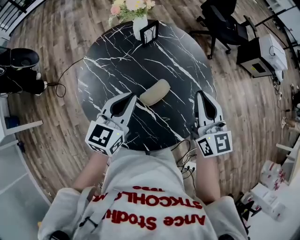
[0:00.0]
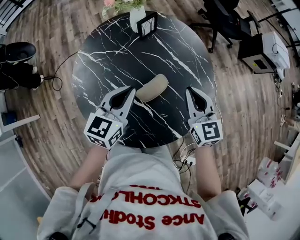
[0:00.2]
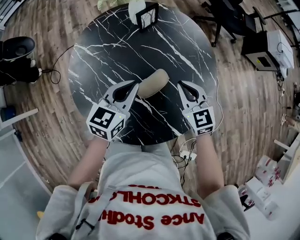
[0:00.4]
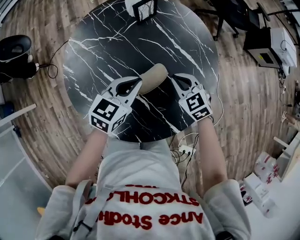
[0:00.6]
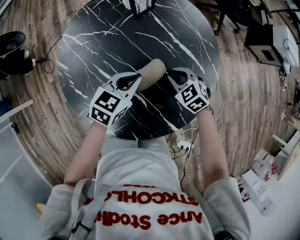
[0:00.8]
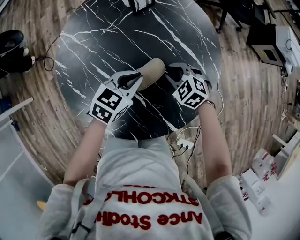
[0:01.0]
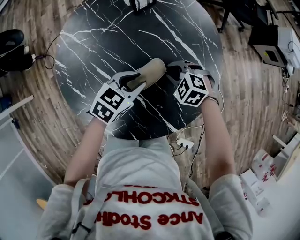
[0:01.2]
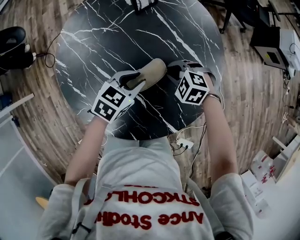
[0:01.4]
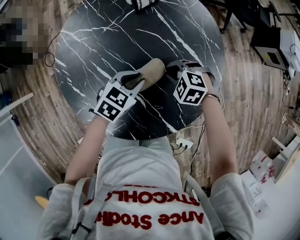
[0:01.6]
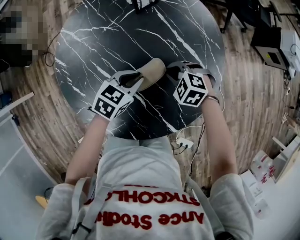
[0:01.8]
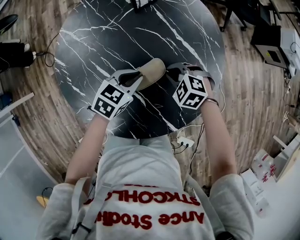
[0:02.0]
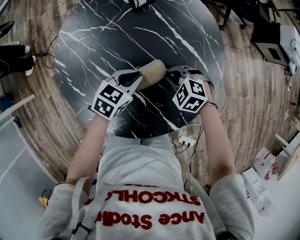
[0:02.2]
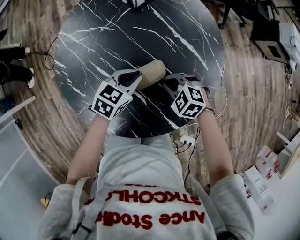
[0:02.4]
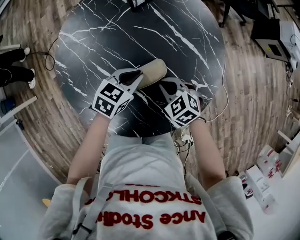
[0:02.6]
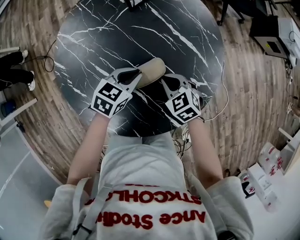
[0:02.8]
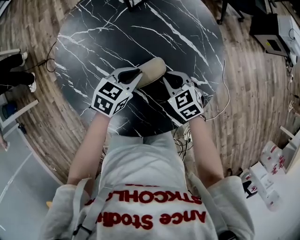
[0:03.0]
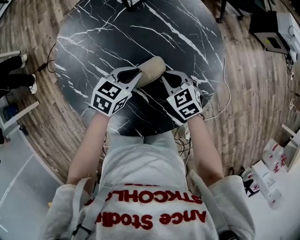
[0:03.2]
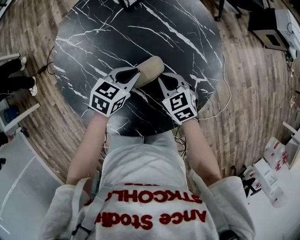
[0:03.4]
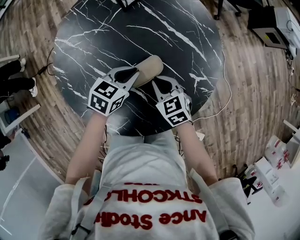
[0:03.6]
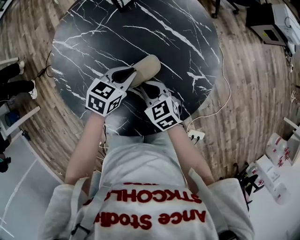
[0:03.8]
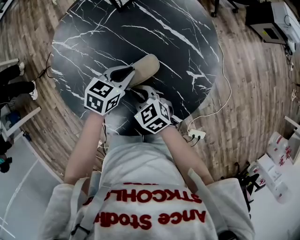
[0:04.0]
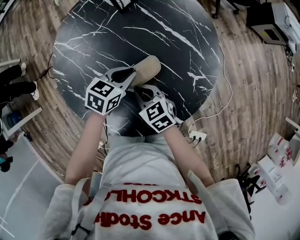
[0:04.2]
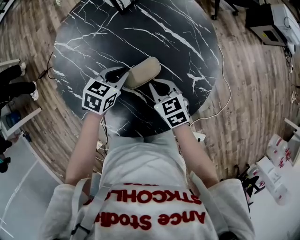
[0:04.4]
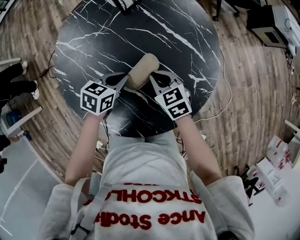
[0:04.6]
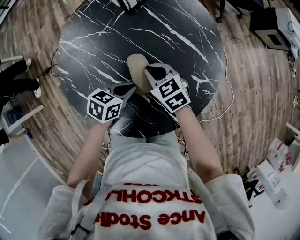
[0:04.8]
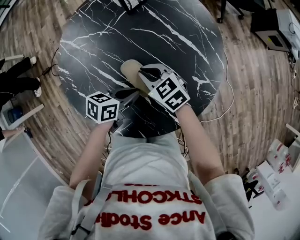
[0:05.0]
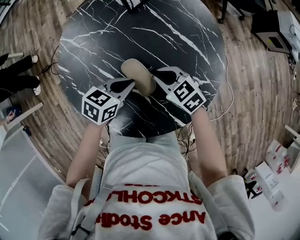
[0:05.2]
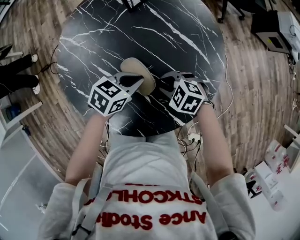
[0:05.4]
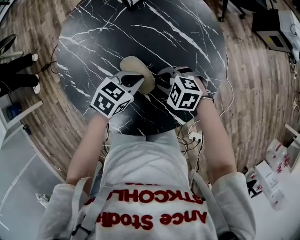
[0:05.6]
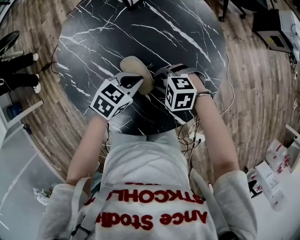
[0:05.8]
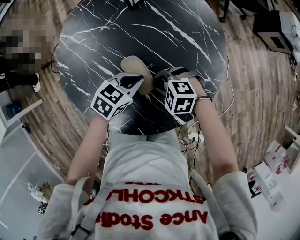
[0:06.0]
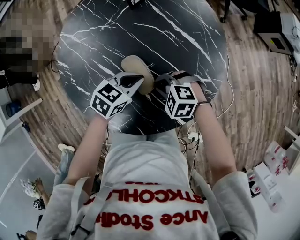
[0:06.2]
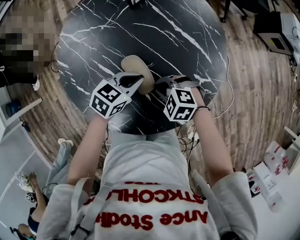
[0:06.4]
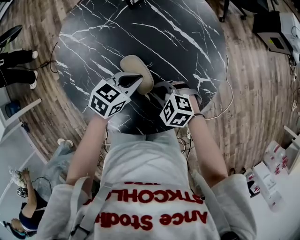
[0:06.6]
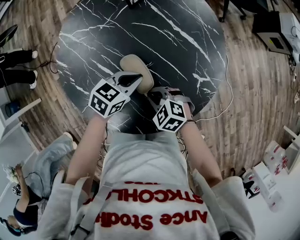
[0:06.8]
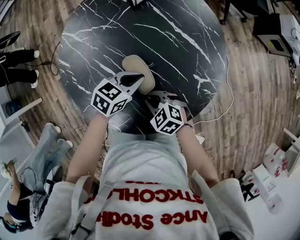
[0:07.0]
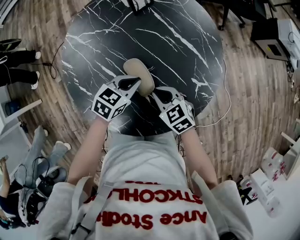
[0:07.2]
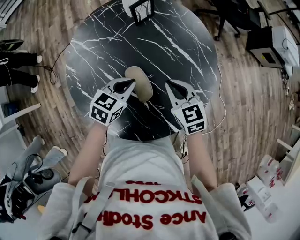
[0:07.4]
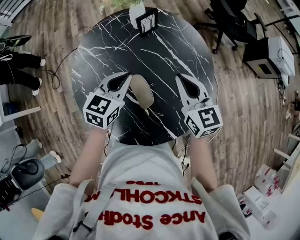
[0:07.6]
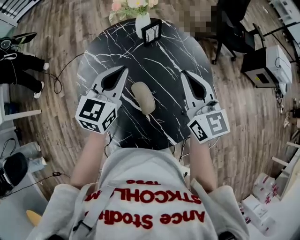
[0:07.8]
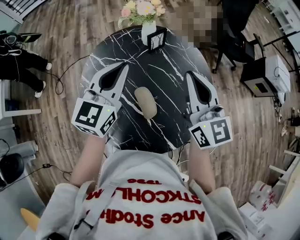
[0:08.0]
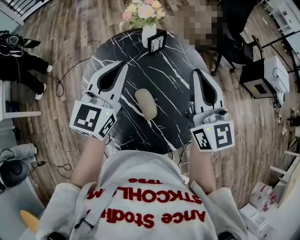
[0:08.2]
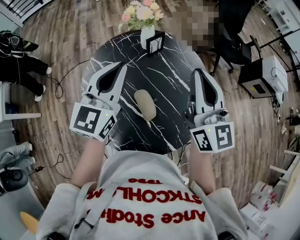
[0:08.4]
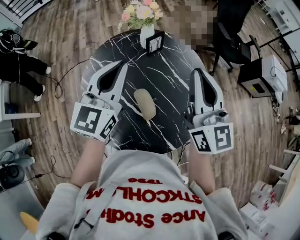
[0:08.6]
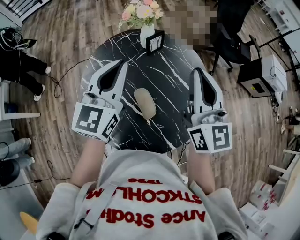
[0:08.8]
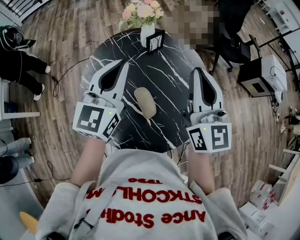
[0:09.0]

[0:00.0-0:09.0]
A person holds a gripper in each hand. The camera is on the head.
0:00.0 to 0:01.6: The two grippers go roughly 25 cm downward. The left gripper tips its fingers downward by roughly 30 degrees, while the right gripper tips its fingers downward by some 60 degrees.
0:01.6 to 0:03.0: The right gripper turns by about 40 degrees.
0:03.0 to 0:04.4: The right gripper goes to the left and returns, some 10 cm each way.
0:04.4 to 0:06.0: The left gripper ends up some 5 cm from where it was, while the right gripper rotates around the line of its fingers by roughly 50 degrees, counterclockwise from behind.
0:06.0 to 0:07.6: The right gripper travels upward by approximately 25 cm, and angles its fingers upward, by some 40 degrees. The left gripper travels upward by approximately 15 cm, and changes its angle by approximately 30 degrees.
0:07.6 to 0:09.0: Both grippers travel together upward, about 20 cm. The left gripper changes its angle by approximately 30 degrees; the right gripper swivels about 30 degrees.

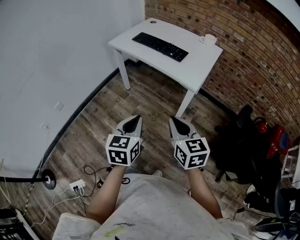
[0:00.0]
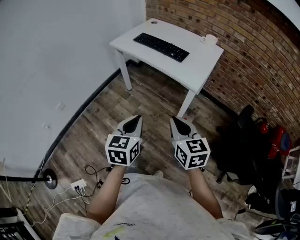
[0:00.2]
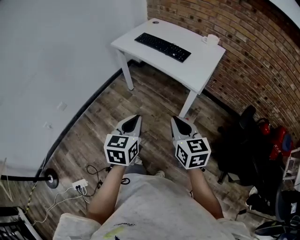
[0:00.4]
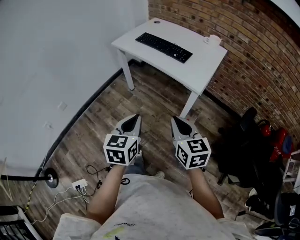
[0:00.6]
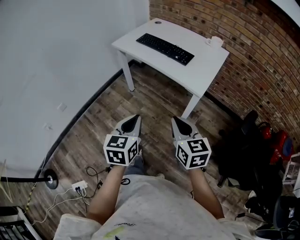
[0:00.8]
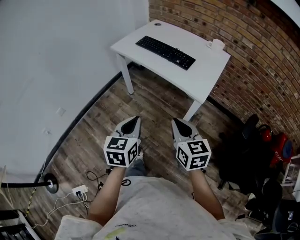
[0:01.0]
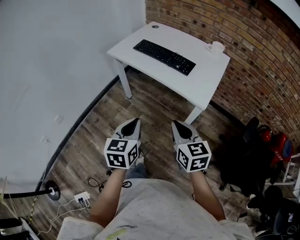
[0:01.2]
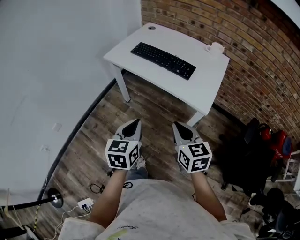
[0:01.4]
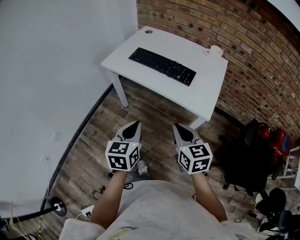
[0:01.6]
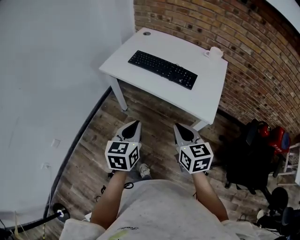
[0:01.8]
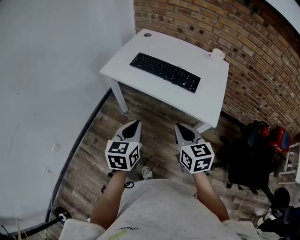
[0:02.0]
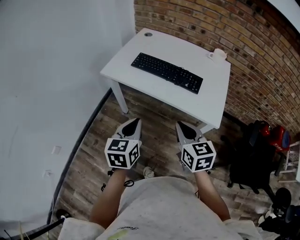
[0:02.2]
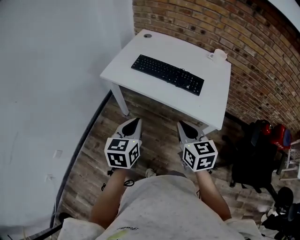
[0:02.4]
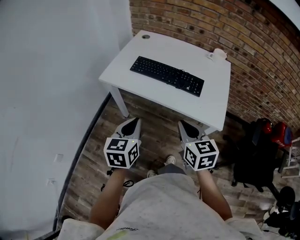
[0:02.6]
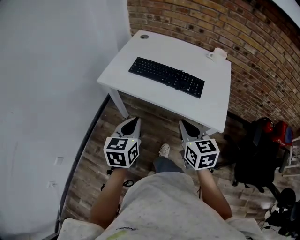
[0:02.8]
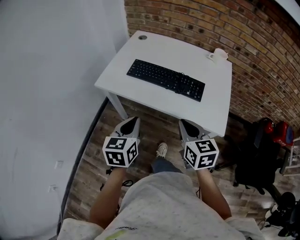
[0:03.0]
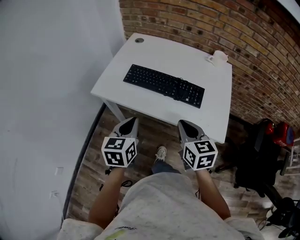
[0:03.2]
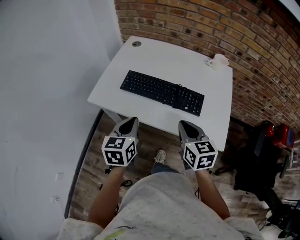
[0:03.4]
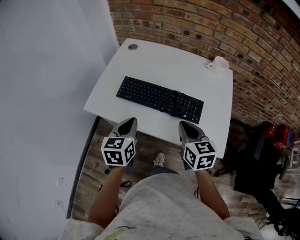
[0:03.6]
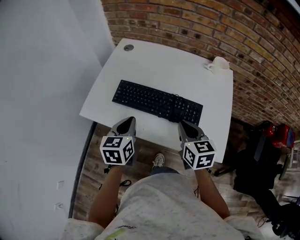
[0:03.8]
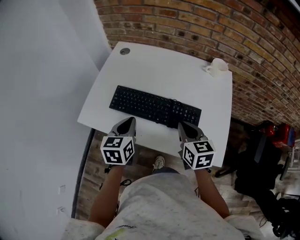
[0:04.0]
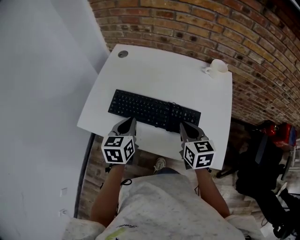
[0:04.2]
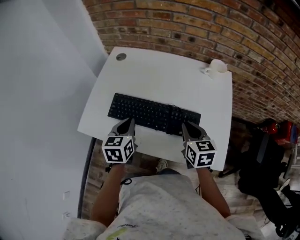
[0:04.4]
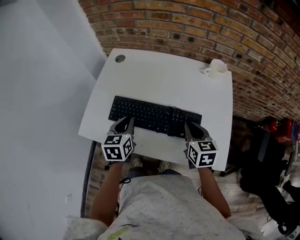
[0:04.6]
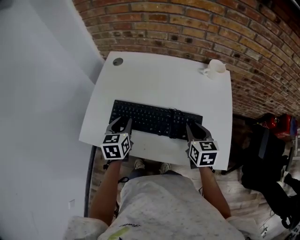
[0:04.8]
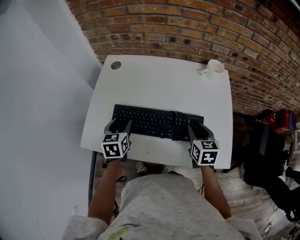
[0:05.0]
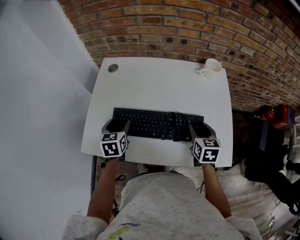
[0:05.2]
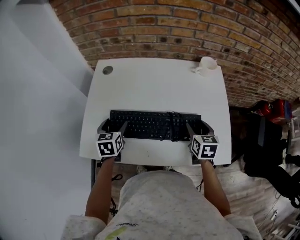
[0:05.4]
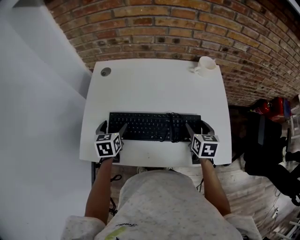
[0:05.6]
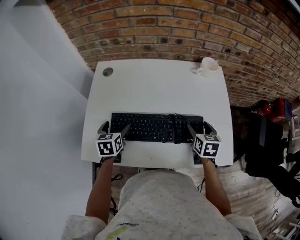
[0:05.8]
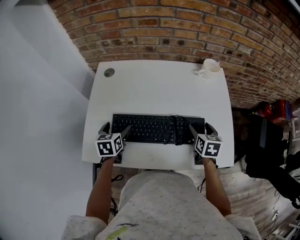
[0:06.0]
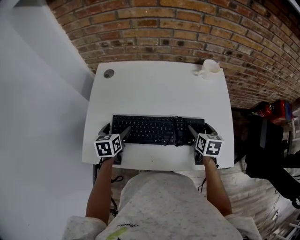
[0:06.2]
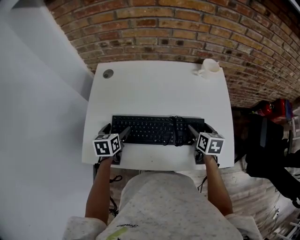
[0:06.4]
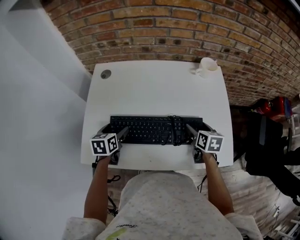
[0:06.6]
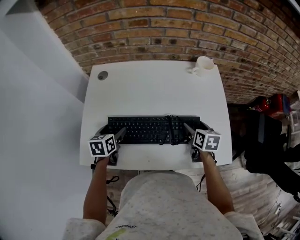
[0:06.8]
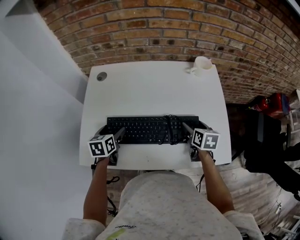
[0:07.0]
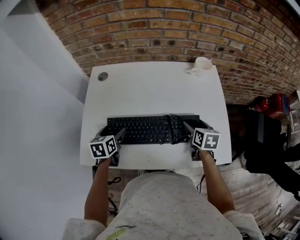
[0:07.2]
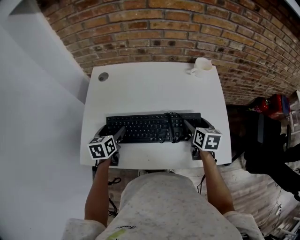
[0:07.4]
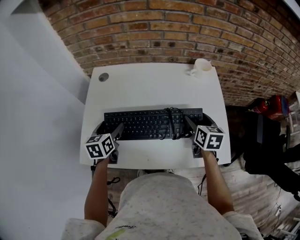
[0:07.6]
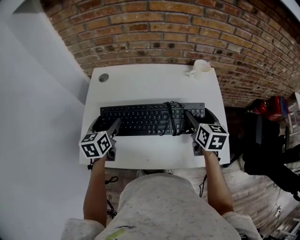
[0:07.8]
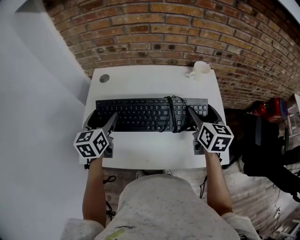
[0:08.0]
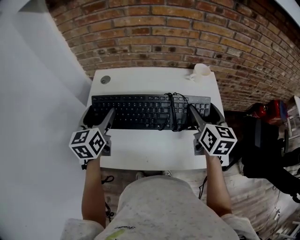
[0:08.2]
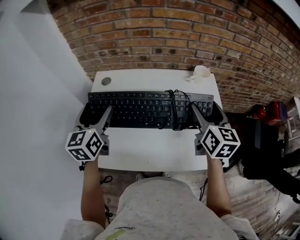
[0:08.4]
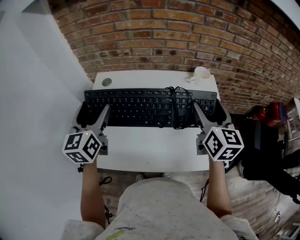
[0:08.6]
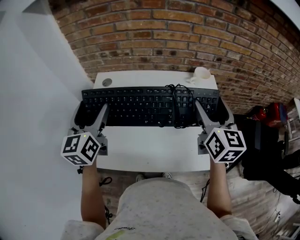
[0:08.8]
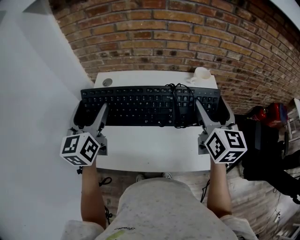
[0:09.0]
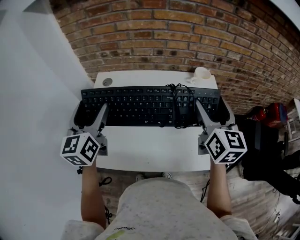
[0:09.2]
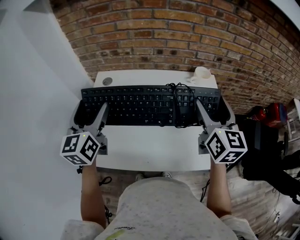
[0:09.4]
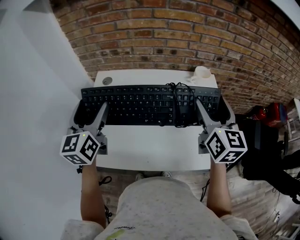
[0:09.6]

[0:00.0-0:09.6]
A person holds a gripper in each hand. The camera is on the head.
0:00.0 to 0:01.6: The two grippers go approximately 25 cm forward.
0:01.6 to 0:03.2: The grippers both shift forward by some 25 cm.
0:03.2 to 0:04.8: The left gripper heads forward, covering approximately 30 cm; the right gripper moves forward and to the right, approximately 25 cm.
0:04.8 to 0:06.4: The right gripper is displaced downward by about 5 cm, rotates some 20 degrees, and opens its fingers, while the left gripper goes roughly 10 cm forward, to the left and downward, and opens.
0:06.4 to 0:08.0: Both grippers move upward, some 15 cm. The right gripper changes its angle by approximately 20 degrees, while the left gripper turns by approximately 20 degrees.
0:08.0 to 0:09.6: Both grippers move upward, roughly 15 cm.

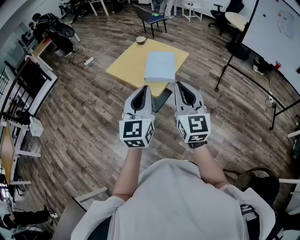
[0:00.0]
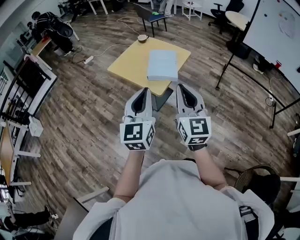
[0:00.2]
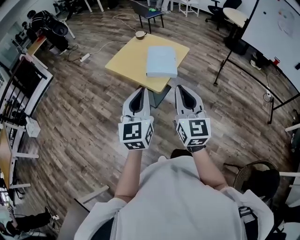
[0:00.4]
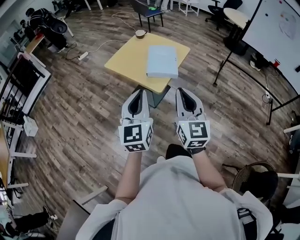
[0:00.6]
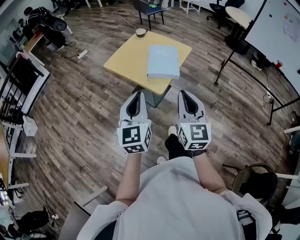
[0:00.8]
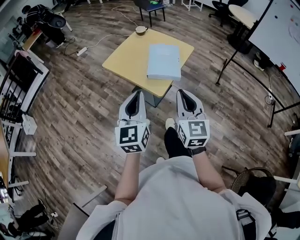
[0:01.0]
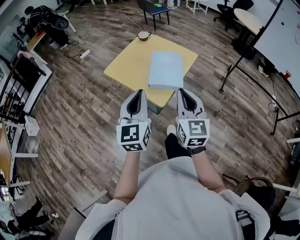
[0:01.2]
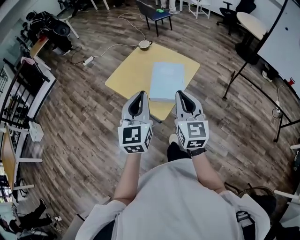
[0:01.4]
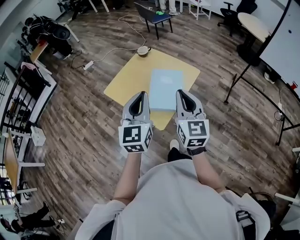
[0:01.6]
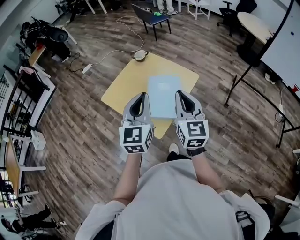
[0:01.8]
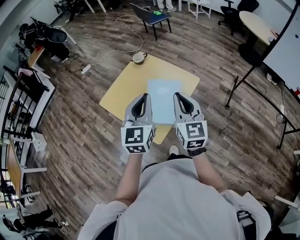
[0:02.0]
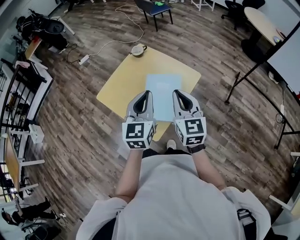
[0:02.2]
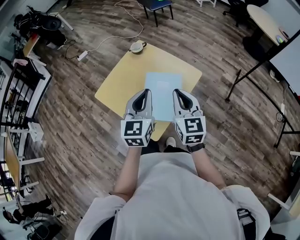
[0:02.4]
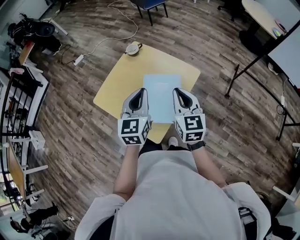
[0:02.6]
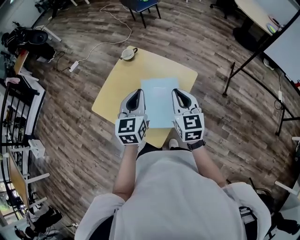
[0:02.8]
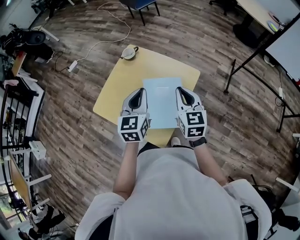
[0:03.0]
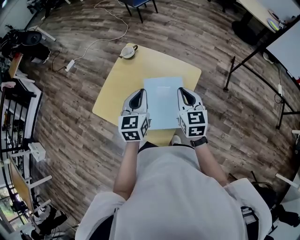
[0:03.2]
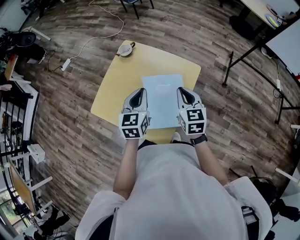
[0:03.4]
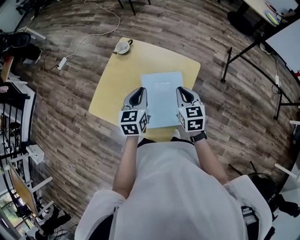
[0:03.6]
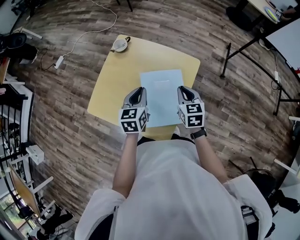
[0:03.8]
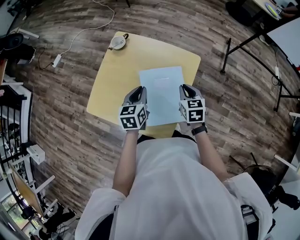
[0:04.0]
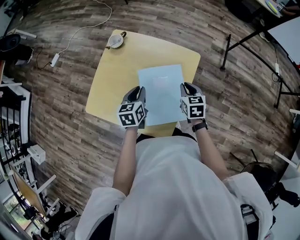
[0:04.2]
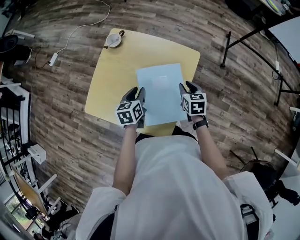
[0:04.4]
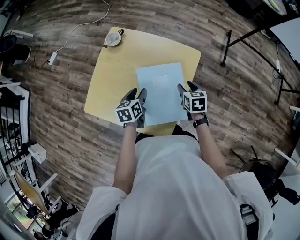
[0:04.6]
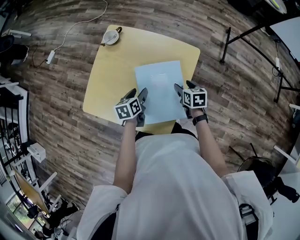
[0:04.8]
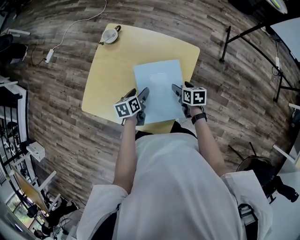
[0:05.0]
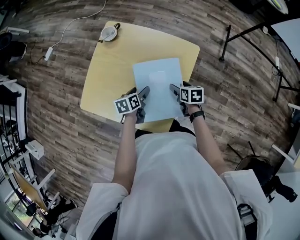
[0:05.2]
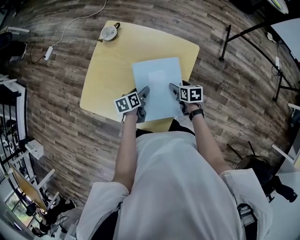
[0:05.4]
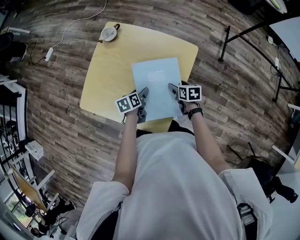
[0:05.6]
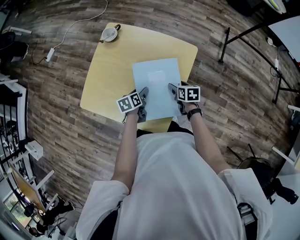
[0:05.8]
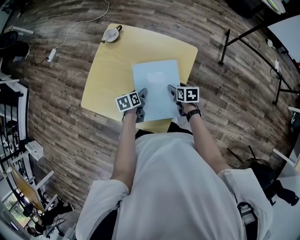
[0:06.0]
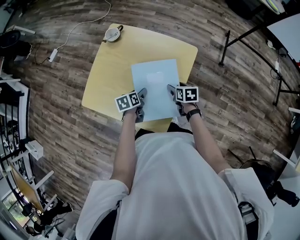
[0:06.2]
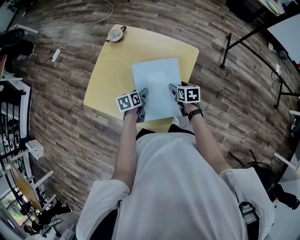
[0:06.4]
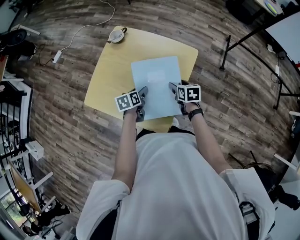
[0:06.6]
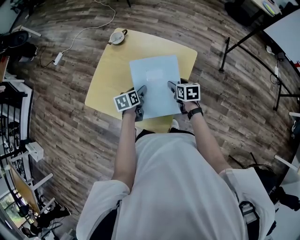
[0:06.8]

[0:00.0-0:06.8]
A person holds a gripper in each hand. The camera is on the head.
0:00.0 to 0:01.4: The grippers both shift forward by approximately 20 cm.
0:01.4 to 0:02.8: The grippers both shift forward by some 25 cm.
0:02.8 to 0:04.0: Both grippers travel together downward, about 15 cm. The right gripper rotates some 30 degrees, while the left gripper swivels about 30 degrees.
0:04.0 to 0:05.4: Both grippers move downward, roughly 15 cm. The left gripper swivels roughly 30 degrees, and opens. The right gripper turns by some 30 degrees, and opens.
0:05.4 to 0:06.8: Both grippers travel together upward, about 5 cm.
